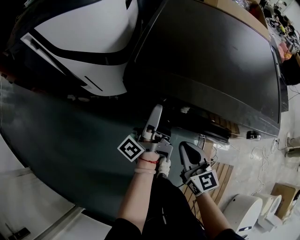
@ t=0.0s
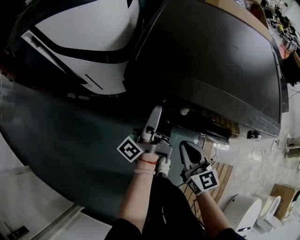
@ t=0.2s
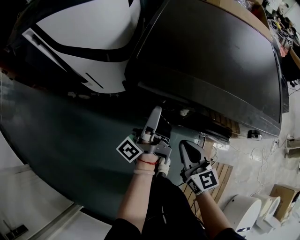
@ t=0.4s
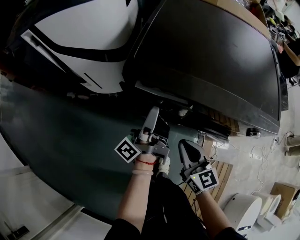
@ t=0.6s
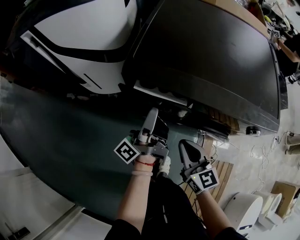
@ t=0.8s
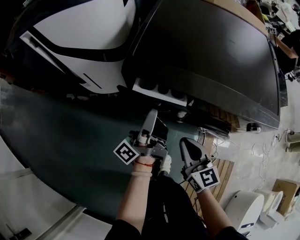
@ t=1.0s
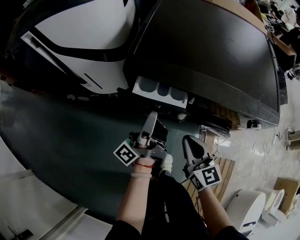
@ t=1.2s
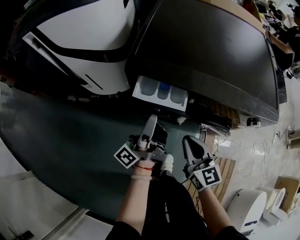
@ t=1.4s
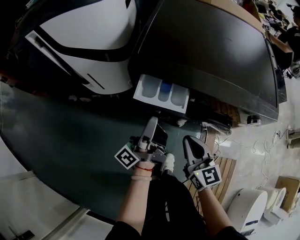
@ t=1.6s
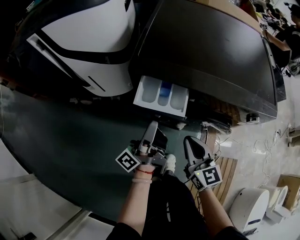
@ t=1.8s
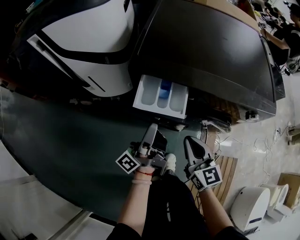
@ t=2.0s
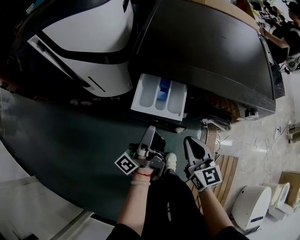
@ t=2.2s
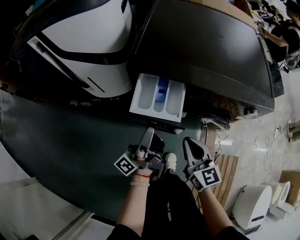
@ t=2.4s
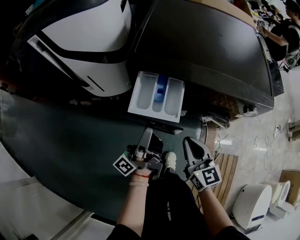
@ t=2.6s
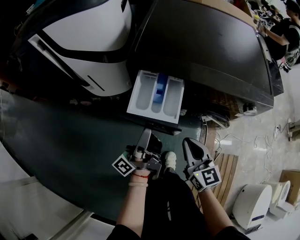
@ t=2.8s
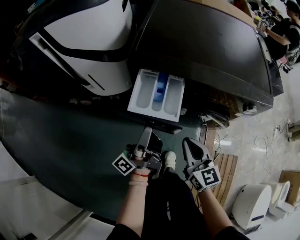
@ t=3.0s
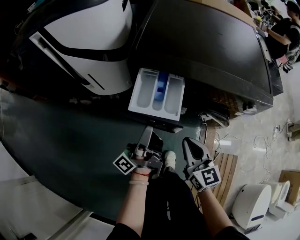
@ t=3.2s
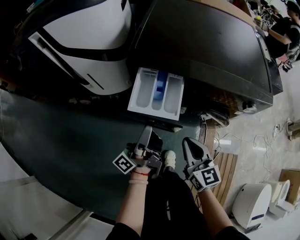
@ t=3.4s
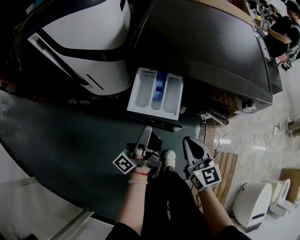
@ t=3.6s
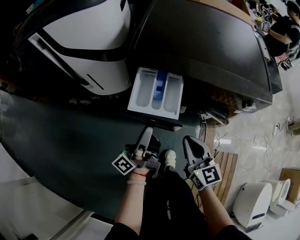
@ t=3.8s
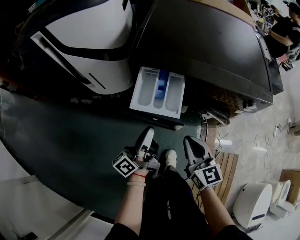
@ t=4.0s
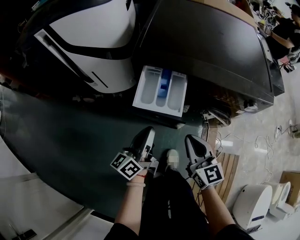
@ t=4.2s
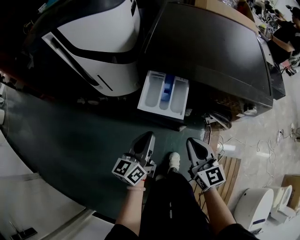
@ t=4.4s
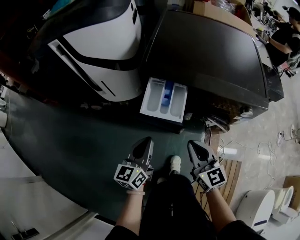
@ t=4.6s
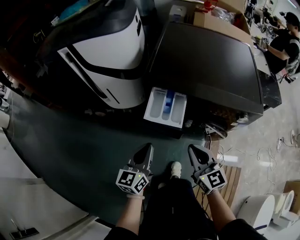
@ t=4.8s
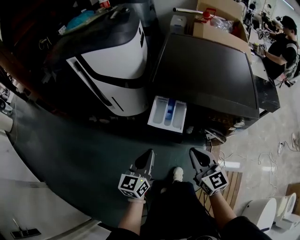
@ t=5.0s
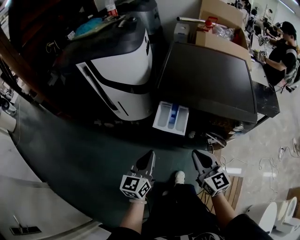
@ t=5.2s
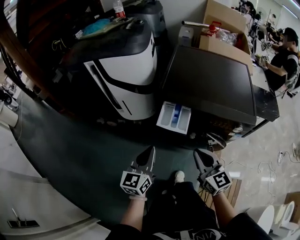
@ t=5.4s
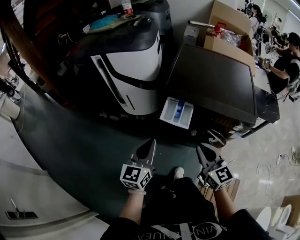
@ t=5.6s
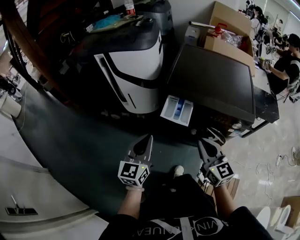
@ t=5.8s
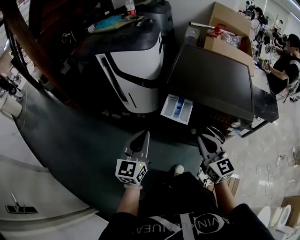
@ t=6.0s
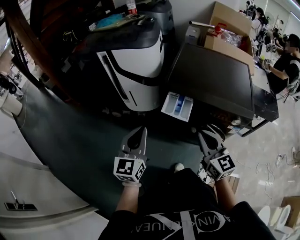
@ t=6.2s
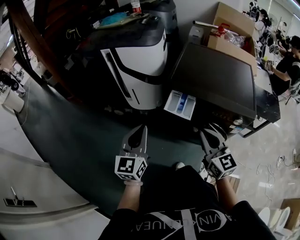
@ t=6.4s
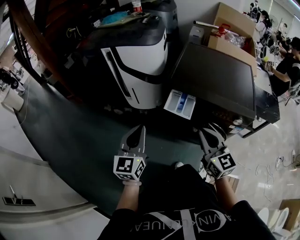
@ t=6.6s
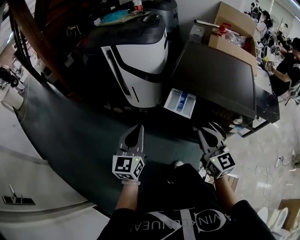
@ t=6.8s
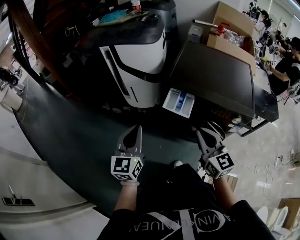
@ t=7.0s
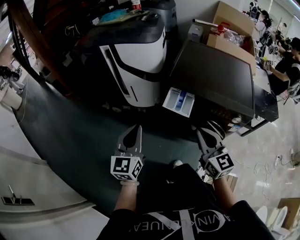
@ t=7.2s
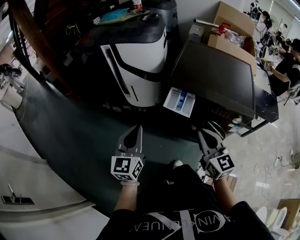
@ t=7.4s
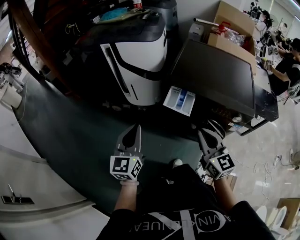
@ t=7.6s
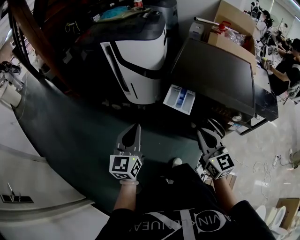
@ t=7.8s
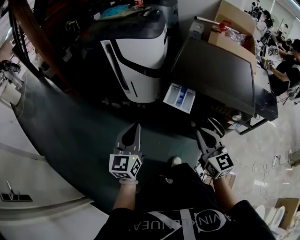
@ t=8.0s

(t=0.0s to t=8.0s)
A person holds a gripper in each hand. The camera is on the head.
t=0.0s - t=1.6s: The left gripper is displaced backward by approximately 5 cm.
t=1.6s - t=3.2s: The left gripper goes about 5 cm backward.
t=3.2s - t=4.8s: The right gripper heads upward, covering some 5 cm. The left gripper travels backward by roughly 5 cm, twists roughly 60 degrees clockwise, seen from behind, and closes.
t=4.8s - t=6.4s: The left gripper moves upward and to the left, roughly 20 cm, and turns by roughly 20 degrees. The right gripper travels upward by some 15 cm.
t=6.4s - t=8.0s: The grippers make only small movements.

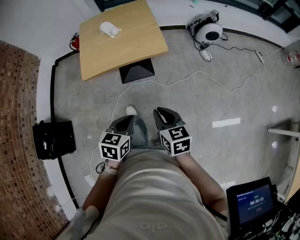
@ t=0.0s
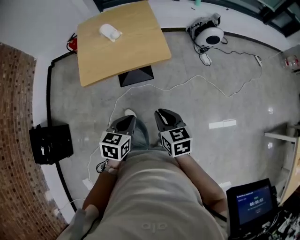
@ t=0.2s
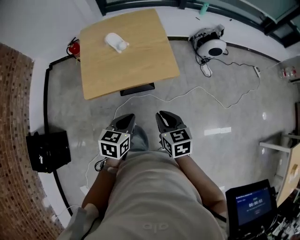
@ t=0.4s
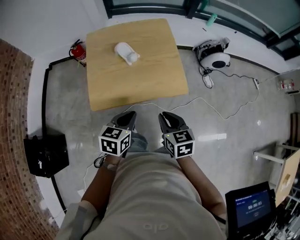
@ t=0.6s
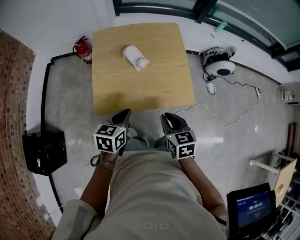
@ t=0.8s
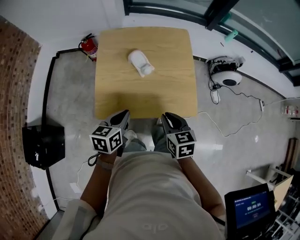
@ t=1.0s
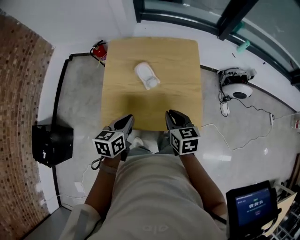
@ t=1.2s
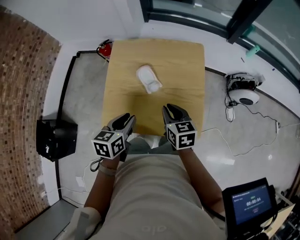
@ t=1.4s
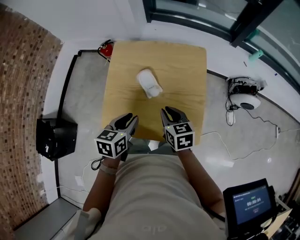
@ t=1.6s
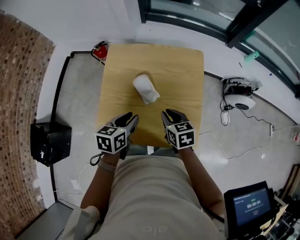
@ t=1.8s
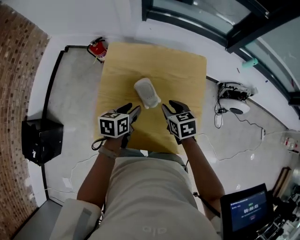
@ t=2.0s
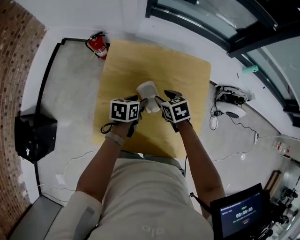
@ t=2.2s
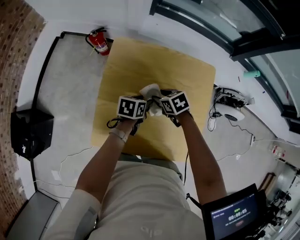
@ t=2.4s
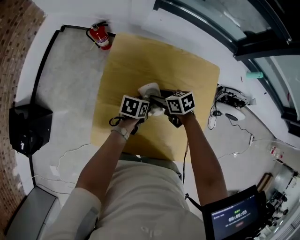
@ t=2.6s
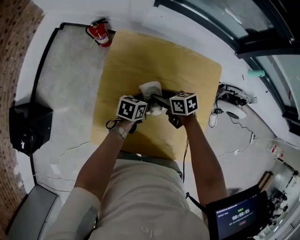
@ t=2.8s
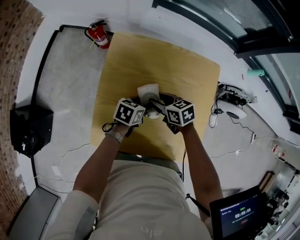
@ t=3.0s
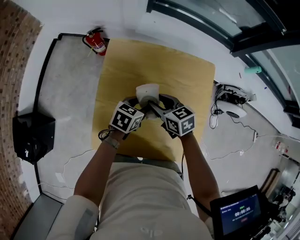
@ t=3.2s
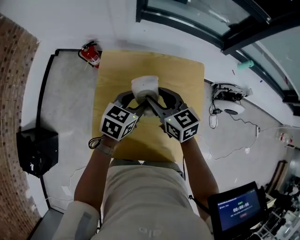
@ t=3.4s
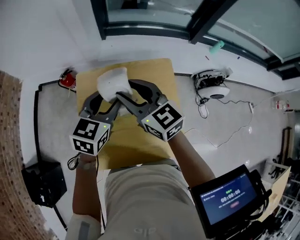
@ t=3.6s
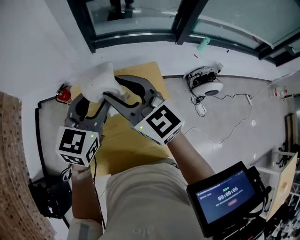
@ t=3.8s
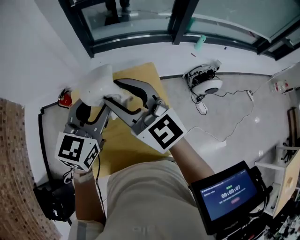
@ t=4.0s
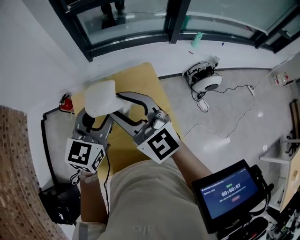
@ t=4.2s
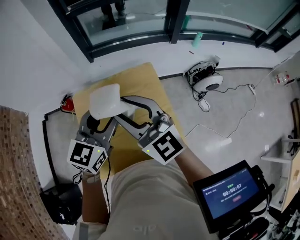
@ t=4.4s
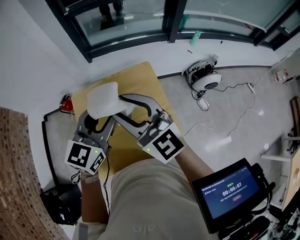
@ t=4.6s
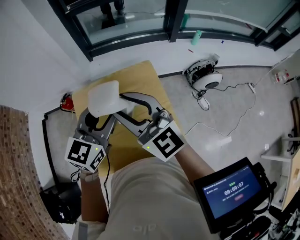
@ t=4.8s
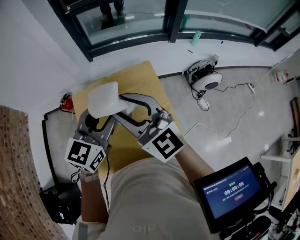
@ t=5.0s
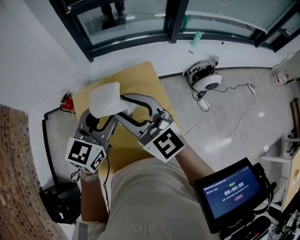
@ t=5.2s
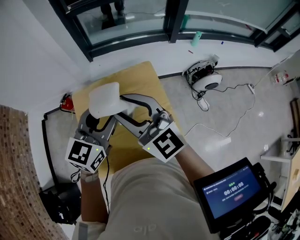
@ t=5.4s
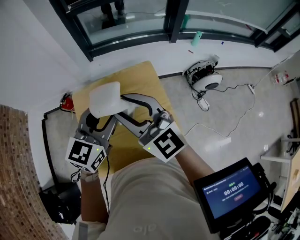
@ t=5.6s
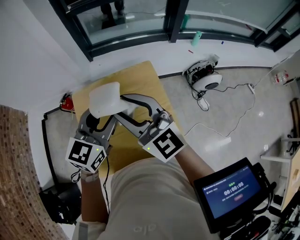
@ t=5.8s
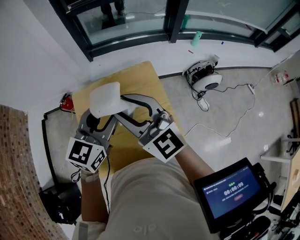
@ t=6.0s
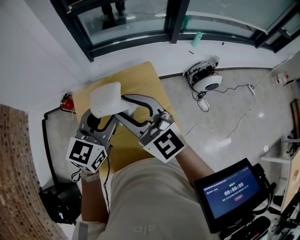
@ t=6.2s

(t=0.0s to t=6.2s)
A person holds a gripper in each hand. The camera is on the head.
t=0.0s - t=1.6s: Both grippers are carried forward, approximately 50 cm. The left gripper rotates some 20 degrees, and opens up; the right gripper rotates roughly 20 degrees.
t=1.6s - t=3.2s: The right gripper changes place by some 20 cm, and opens; the left gripper moves roughly 25 cm, and opens up.
t=3.2s - t=4.6s: Both grippers travel together upward, roughly 35 cm. The left gripper tilts its fingers about 30 degrees upward, while the right gripper angles its fingers upward, by approximately 40 degrees.
t=4.6s - t=6.2s: The two grippers keep their place.

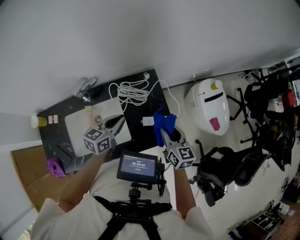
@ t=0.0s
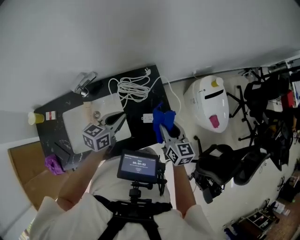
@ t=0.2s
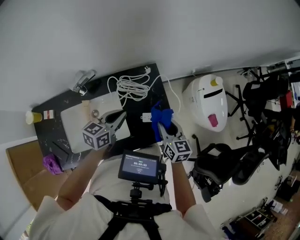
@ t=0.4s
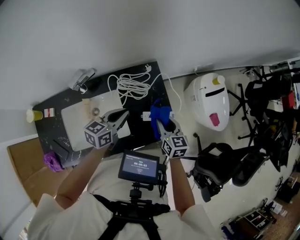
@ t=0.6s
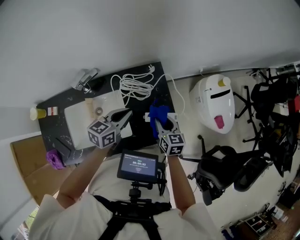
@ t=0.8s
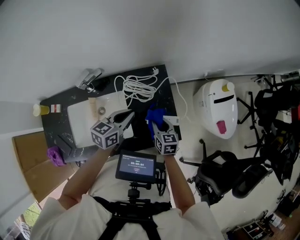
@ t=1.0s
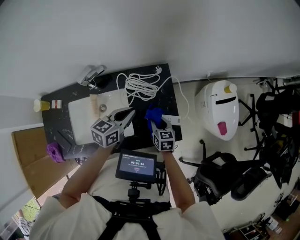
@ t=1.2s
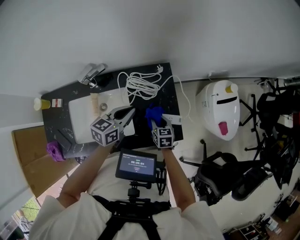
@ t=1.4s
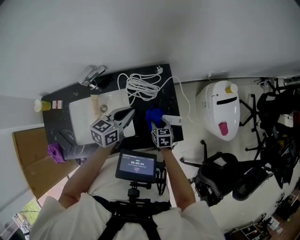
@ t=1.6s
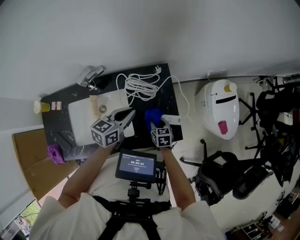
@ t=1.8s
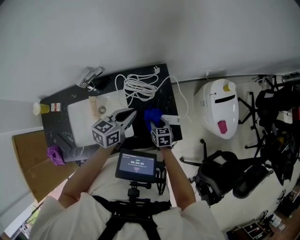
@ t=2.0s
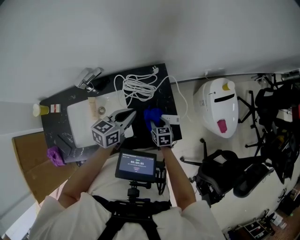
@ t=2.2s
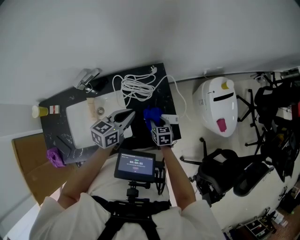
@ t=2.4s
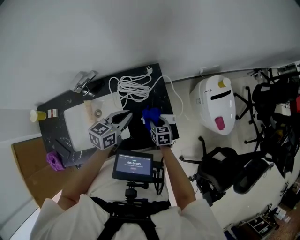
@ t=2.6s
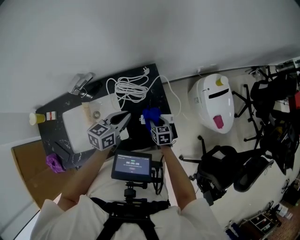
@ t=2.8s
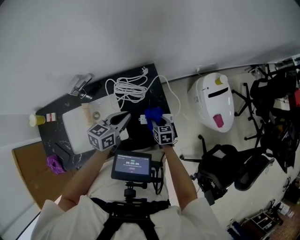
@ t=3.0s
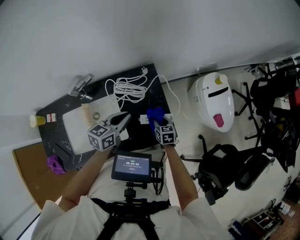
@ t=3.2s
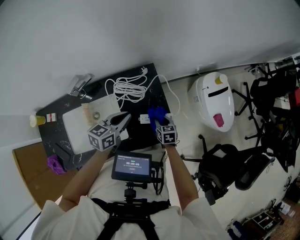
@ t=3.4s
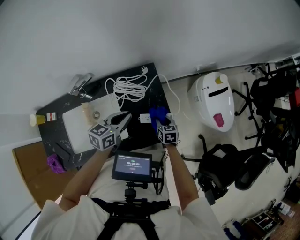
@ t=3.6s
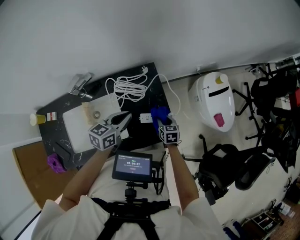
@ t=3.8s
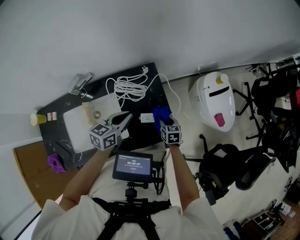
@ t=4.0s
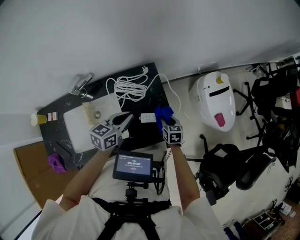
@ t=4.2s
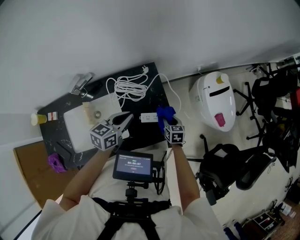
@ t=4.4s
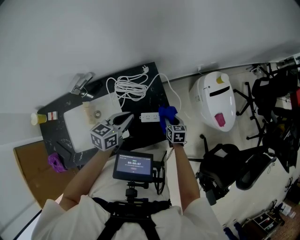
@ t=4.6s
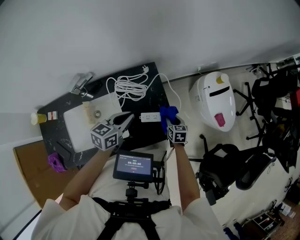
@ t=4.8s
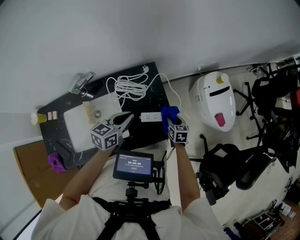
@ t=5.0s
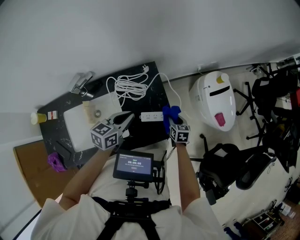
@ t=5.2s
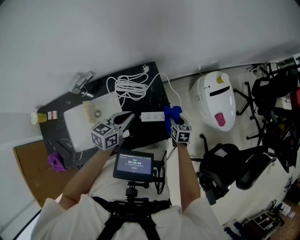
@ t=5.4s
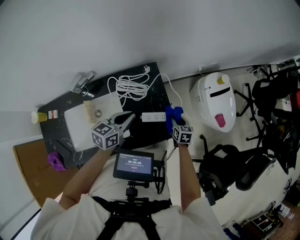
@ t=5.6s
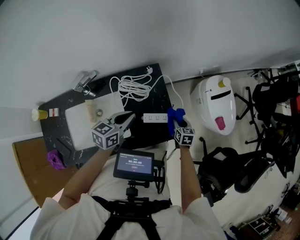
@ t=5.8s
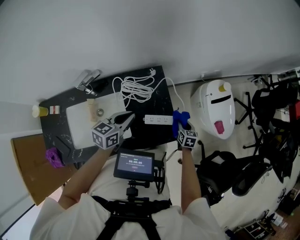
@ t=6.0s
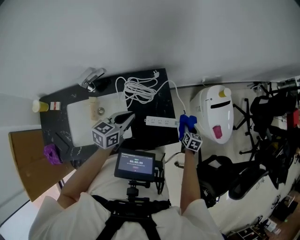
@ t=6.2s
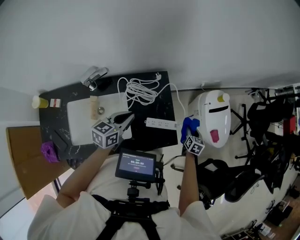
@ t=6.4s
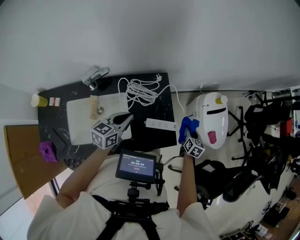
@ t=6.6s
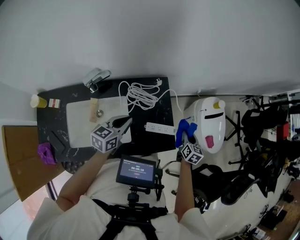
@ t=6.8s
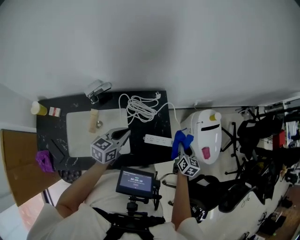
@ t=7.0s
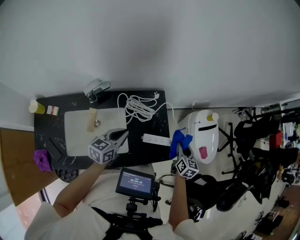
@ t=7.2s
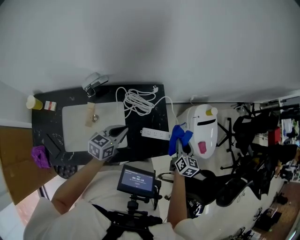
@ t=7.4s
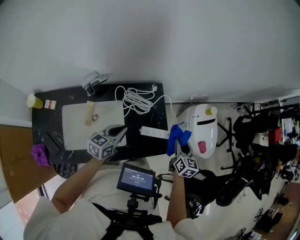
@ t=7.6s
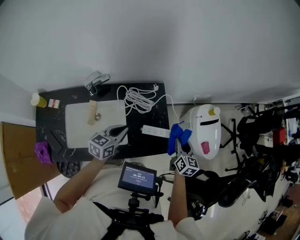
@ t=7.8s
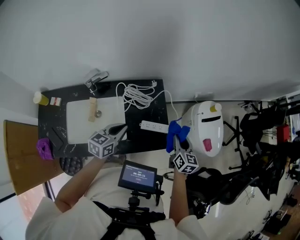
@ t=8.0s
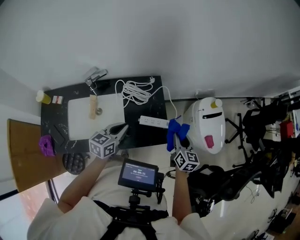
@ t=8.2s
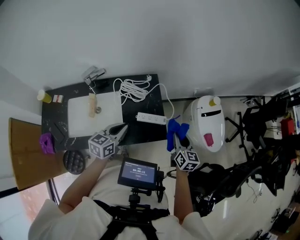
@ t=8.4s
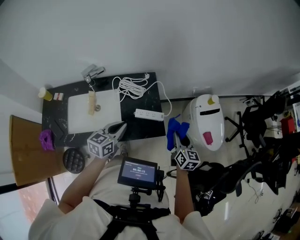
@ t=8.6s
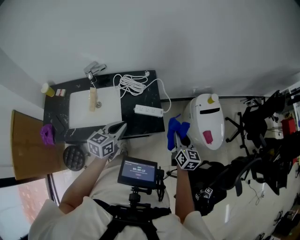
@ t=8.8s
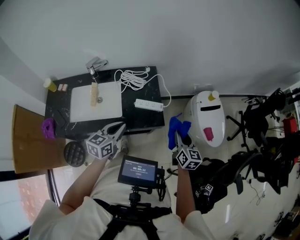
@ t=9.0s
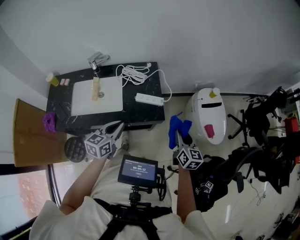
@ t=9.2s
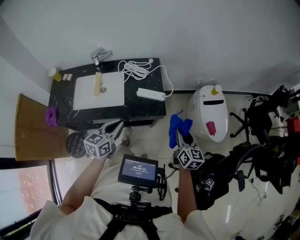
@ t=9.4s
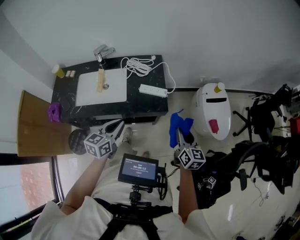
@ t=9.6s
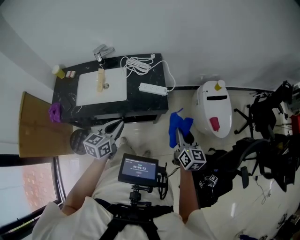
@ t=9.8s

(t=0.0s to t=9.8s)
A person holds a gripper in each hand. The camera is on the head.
t=0.0s - t=1.4s: The left gripper goes approximately 5 cm forward. The right gripper moves downward, some 20 cm, and rotates roughly 30 degrees.
t=1.4s - t=2.8s: The right gripper ends up some 5 cm from where it was.
t=2.8s - t=4.2s: The right gripper moves to the right, roughly 5 cm.
t=4.2s - t=5.6s: The right gripper shifts roughly 5 cm to the right.
t=5.6s - t=7.0s: The right gripper shifts approximately 15 cm upward, while the left gripper shifts approximately 15 cm to the left and backward.
t=7.0s - t=8.4s: The right gripper moves backward, to the right and upward, roughly 20 cm. Meanwhile the left gripper heads to the right and backward, covering approximately 20 cm.
t=8.4s - t=9.8s: Both grippers move backward and to the right, some 30 cm.
